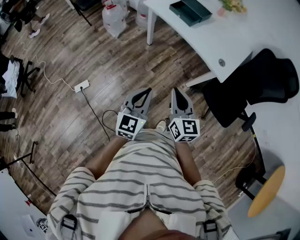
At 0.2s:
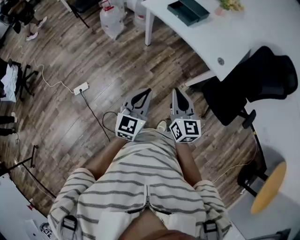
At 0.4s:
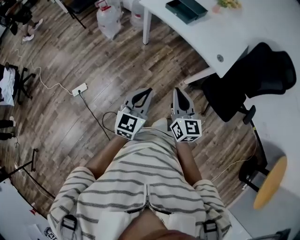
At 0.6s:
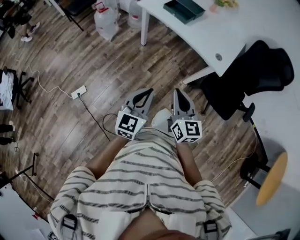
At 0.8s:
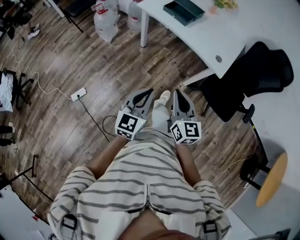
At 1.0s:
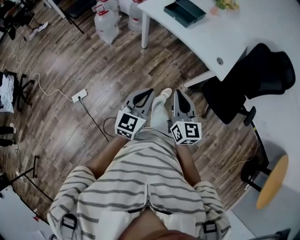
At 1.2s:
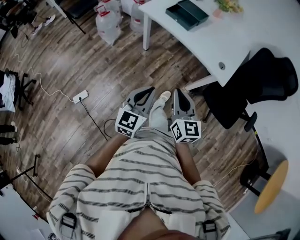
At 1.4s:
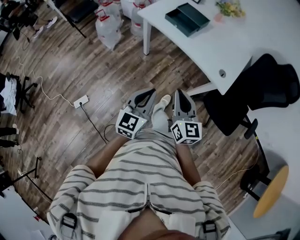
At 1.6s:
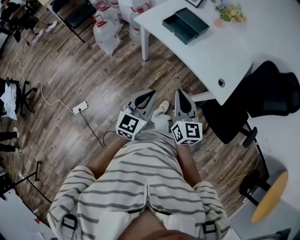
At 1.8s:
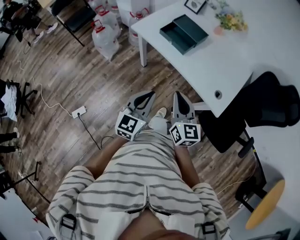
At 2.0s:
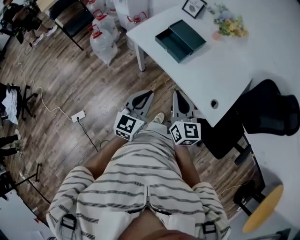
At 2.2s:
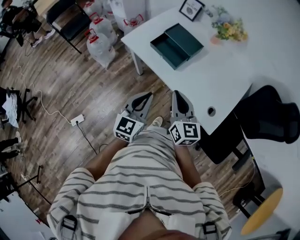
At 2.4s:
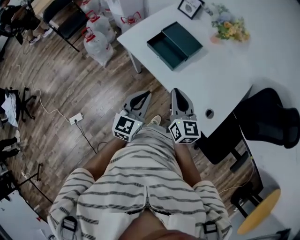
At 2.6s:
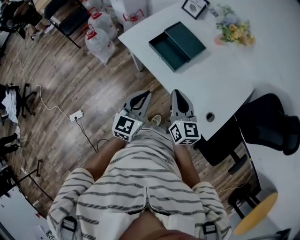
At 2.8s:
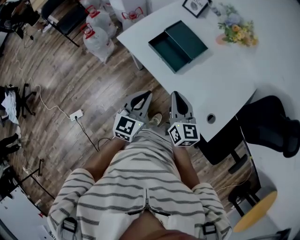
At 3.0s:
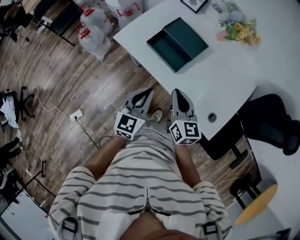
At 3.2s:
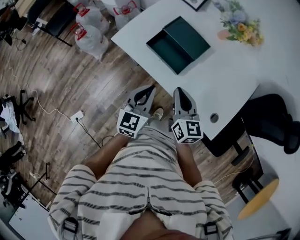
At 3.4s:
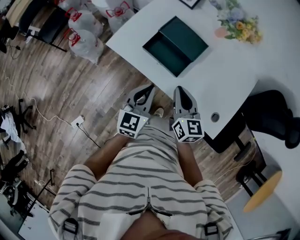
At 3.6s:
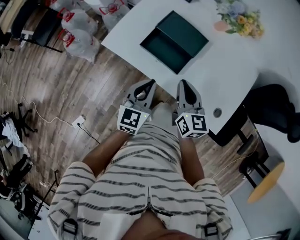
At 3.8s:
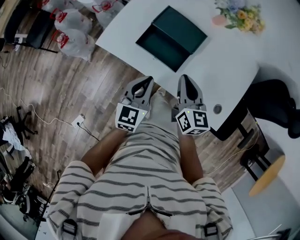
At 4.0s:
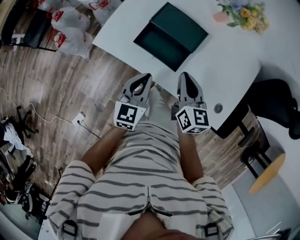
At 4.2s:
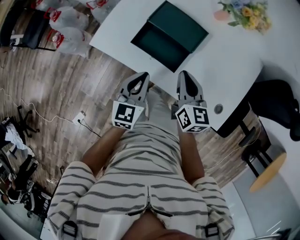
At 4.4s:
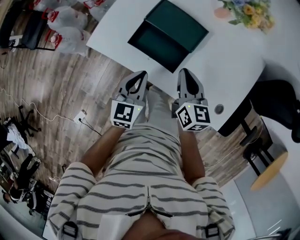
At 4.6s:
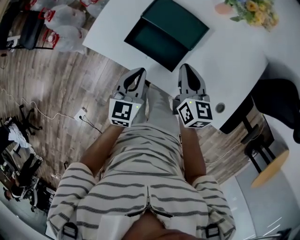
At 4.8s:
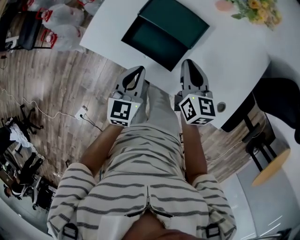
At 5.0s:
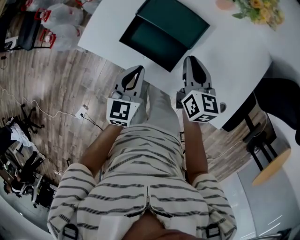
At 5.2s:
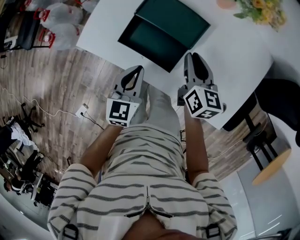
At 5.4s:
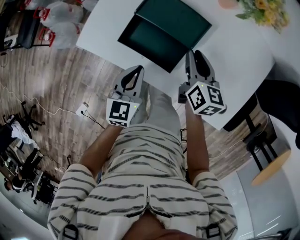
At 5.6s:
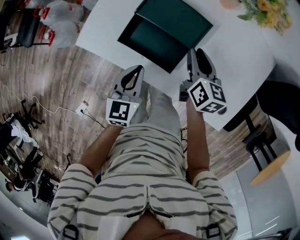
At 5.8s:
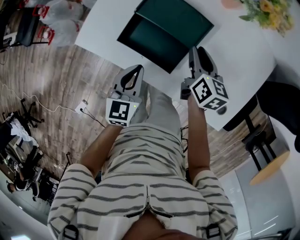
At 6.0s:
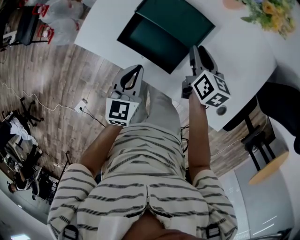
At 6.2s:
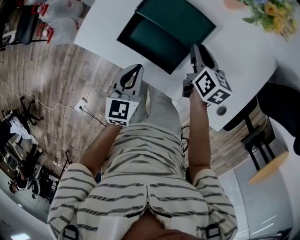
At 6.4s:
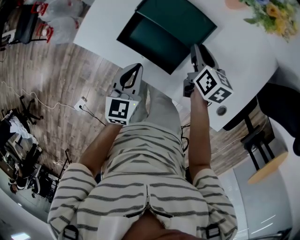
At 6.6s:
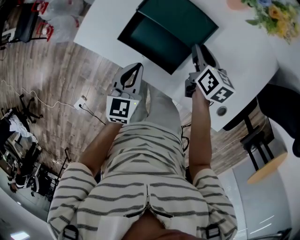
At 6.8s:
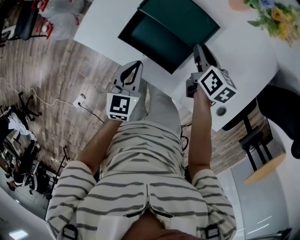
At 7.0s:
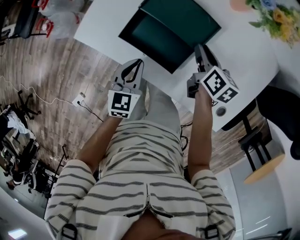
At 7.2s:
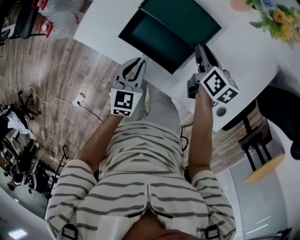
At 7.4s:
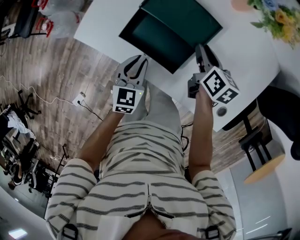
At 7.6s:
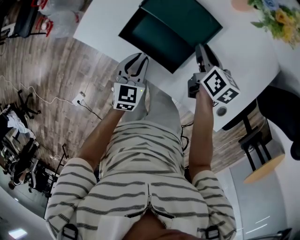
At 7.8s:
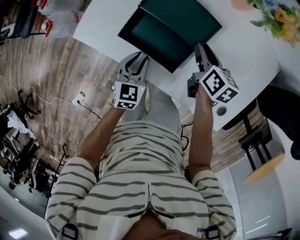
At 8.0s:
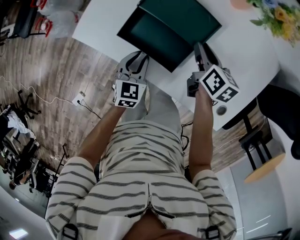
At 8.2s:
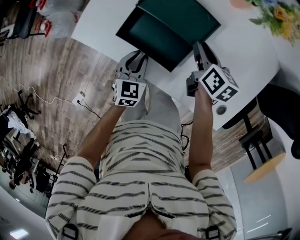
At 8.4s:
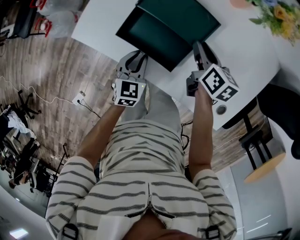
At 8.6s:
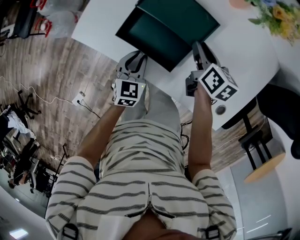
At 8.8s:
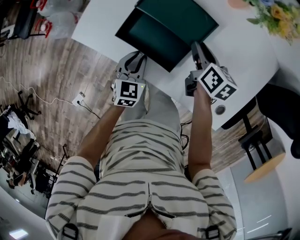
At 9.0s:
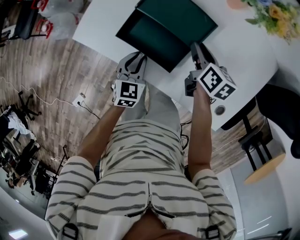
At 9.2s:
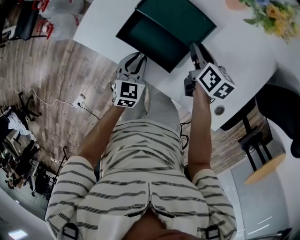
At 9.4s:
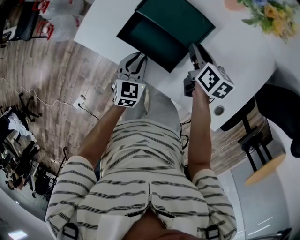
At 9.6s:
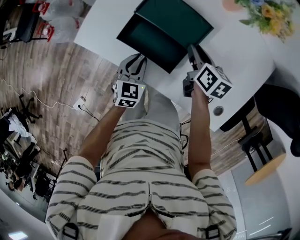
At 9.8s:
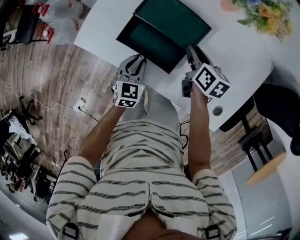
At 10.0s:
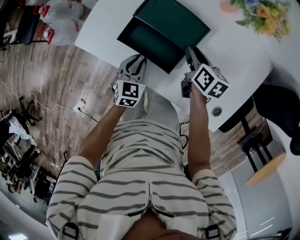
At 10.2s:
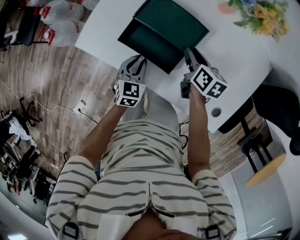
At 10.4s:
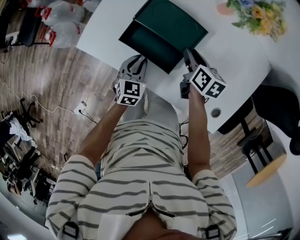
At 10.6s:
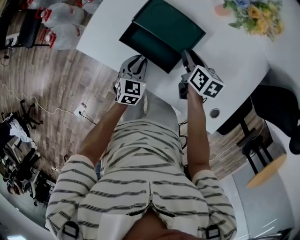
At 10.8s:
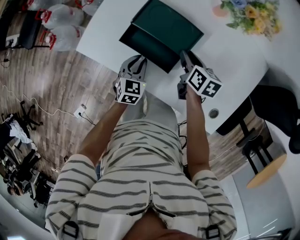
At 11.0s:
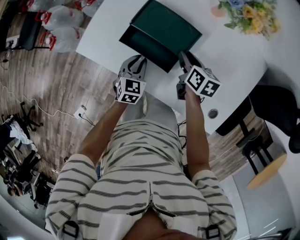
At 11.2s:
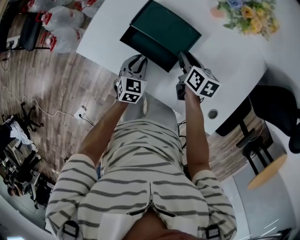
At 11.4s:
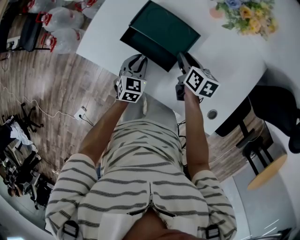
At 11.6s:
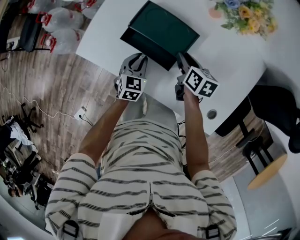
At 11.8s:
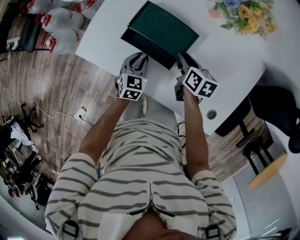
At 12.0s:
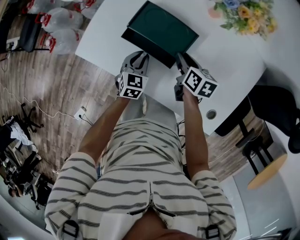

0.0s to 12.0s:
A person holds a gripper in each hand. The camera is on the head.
0.0s to 1.6s: The grippers both shift forward by approximately 20 cm.
1.6s to 3.0s: Both grippers travel together forward, approximately 30 cm.
3.0s to 4.4s: Both grippers travel together forward and downward, about 15 cm.
4.4s to 6.0s: The right gripper shifts roughly 15 cm forward, downward and to the right, and opens up. The left gripper ends up approximately 5 cm from where it was.
6.0s to 7.6s: The left gripper heads downward, covering some 5 cm.
7.6s to 10.4s: There are only small adjustments of the grippers.
10.4s to 12.0s: The left gripper moves about 5 cm.

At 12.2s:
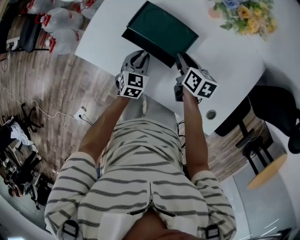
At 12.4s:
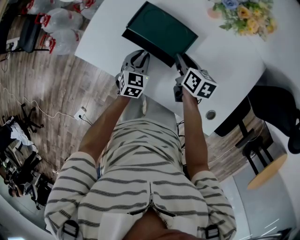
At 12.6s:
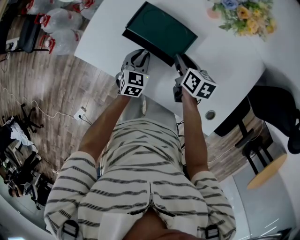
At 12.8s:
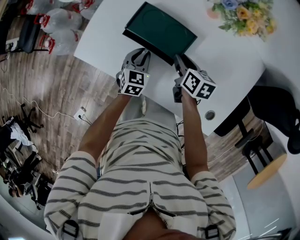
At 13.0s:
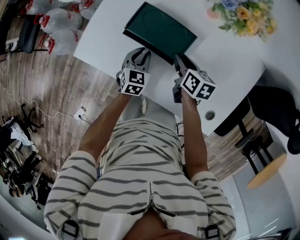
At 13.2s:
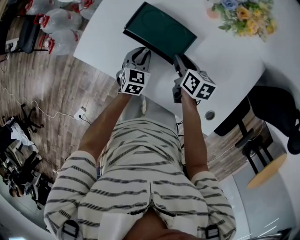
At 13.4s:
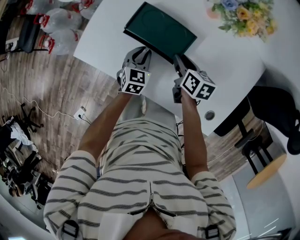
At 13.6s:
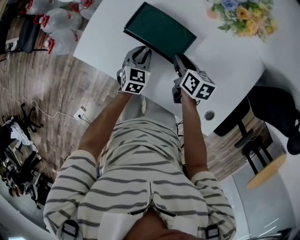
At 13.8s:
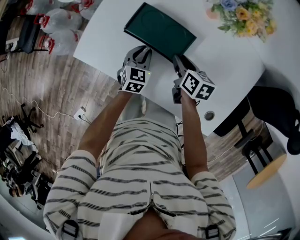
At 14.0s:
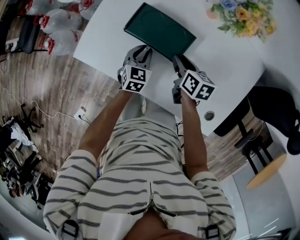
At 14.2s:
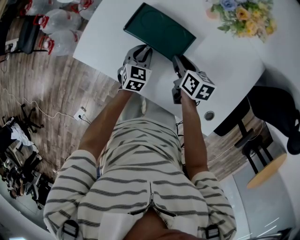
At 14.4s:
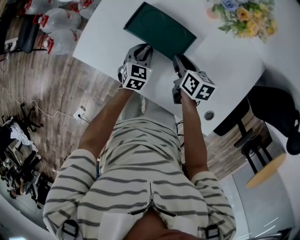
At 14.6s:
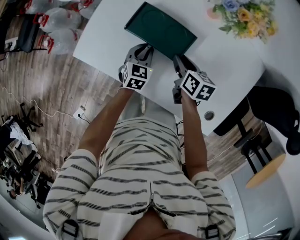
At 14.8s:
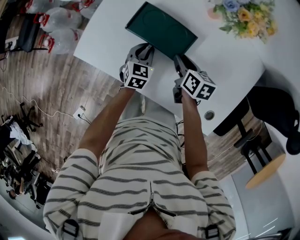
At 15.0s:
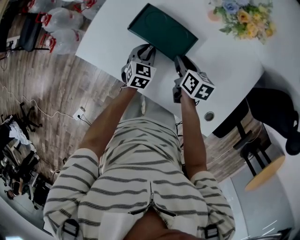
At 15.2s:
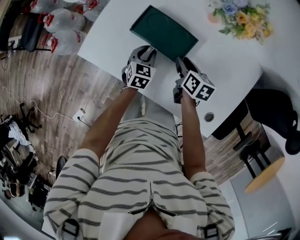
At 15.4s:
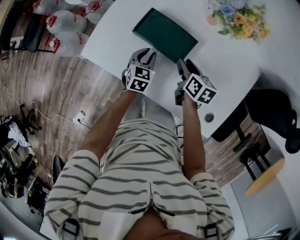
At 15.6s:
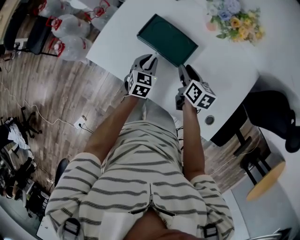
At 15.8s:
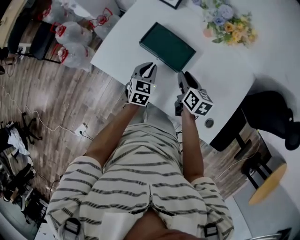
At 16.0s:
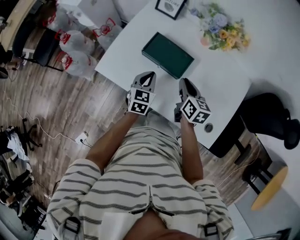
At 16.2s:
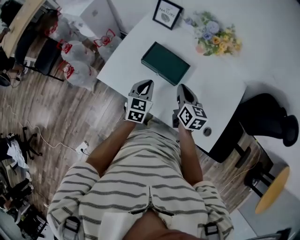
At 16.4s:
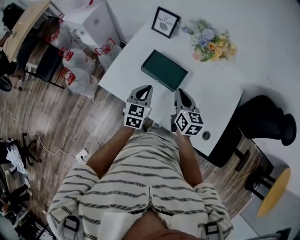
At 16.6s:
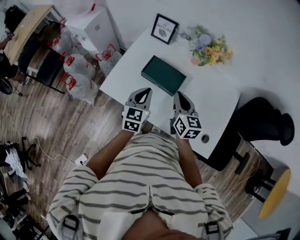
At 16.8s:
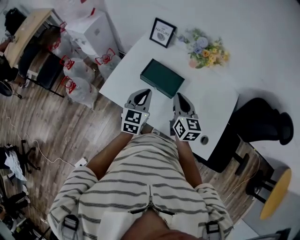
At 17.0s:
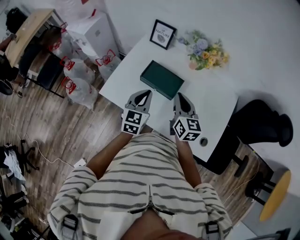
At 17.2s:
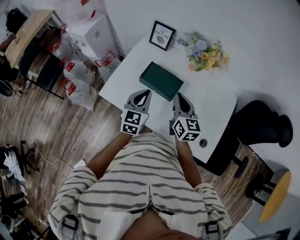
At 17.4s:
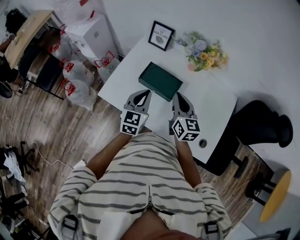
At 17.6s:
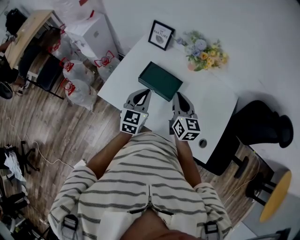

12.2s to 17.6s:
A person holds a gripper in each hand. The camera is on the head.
12.2s to 15.0s: The grippers move only a little.
15.0s to 16.2s: The right gripper shifts some 15 cm upward, changes its angle by some 20 degrees, and closes up. Meanwhile the left gripper heads upward and backward, covering approximately 20 cm.
16.2s to 17.6s: The two grippers go about 10 cm upward.

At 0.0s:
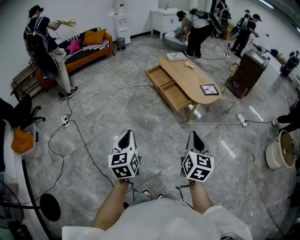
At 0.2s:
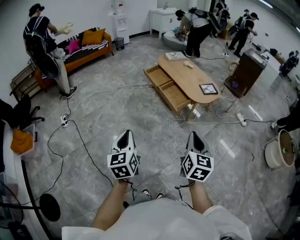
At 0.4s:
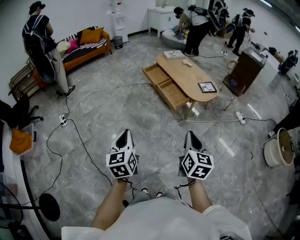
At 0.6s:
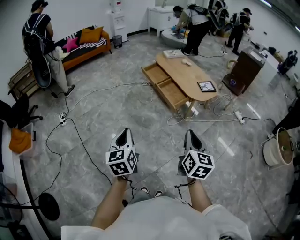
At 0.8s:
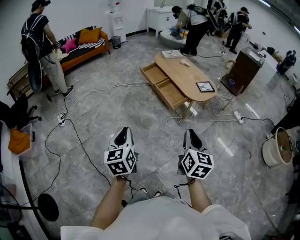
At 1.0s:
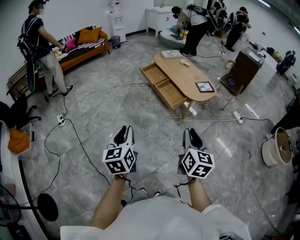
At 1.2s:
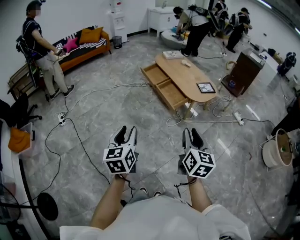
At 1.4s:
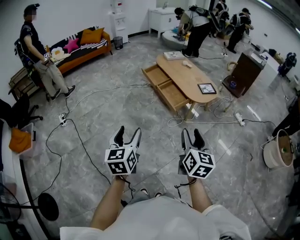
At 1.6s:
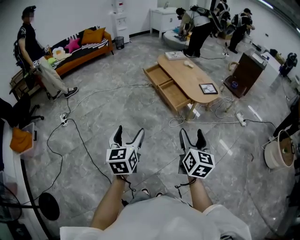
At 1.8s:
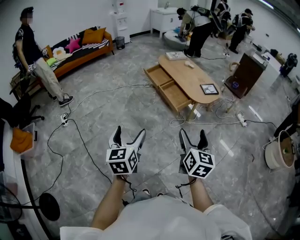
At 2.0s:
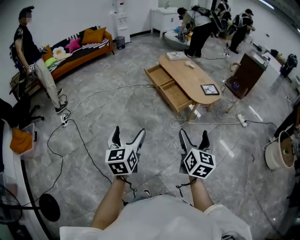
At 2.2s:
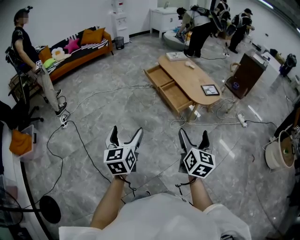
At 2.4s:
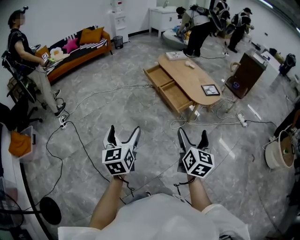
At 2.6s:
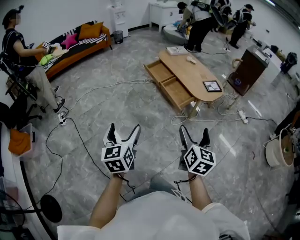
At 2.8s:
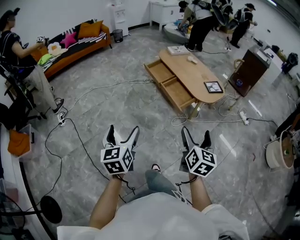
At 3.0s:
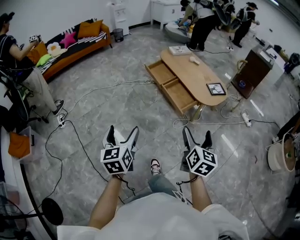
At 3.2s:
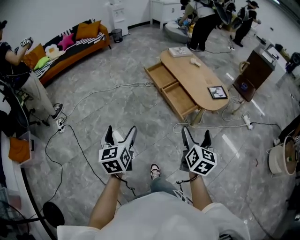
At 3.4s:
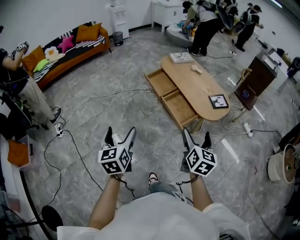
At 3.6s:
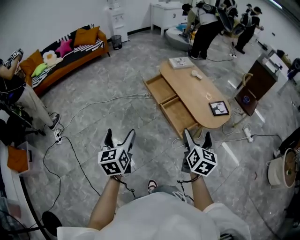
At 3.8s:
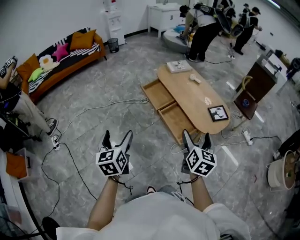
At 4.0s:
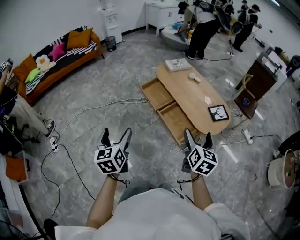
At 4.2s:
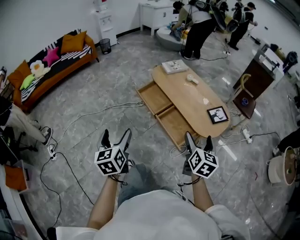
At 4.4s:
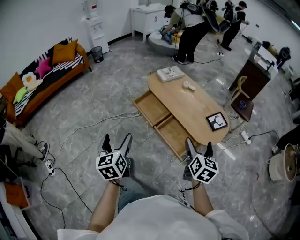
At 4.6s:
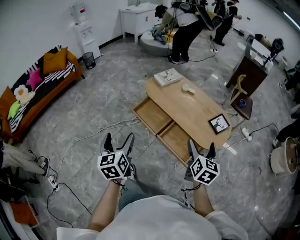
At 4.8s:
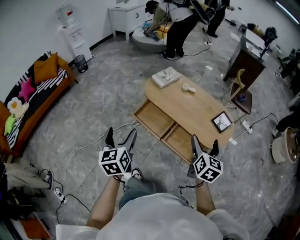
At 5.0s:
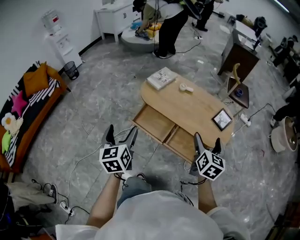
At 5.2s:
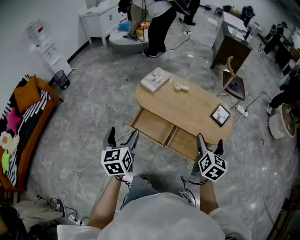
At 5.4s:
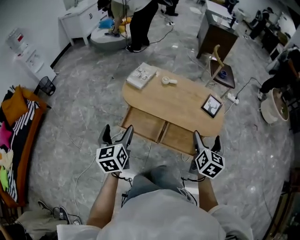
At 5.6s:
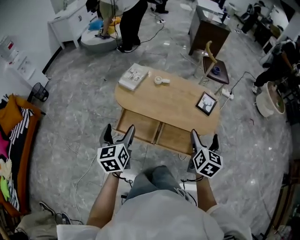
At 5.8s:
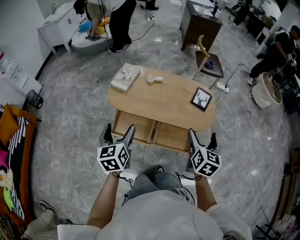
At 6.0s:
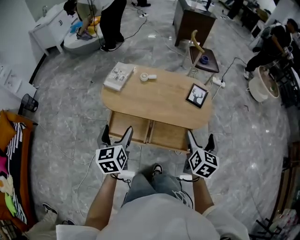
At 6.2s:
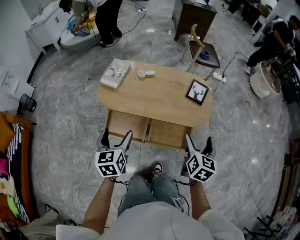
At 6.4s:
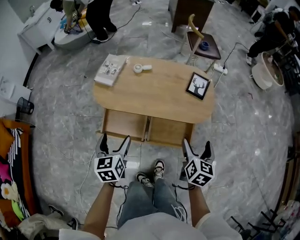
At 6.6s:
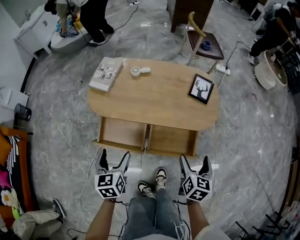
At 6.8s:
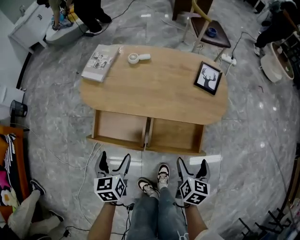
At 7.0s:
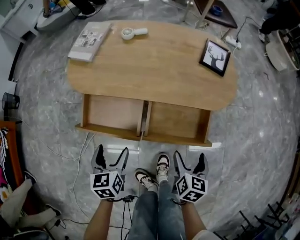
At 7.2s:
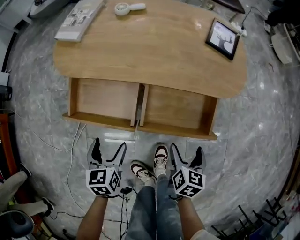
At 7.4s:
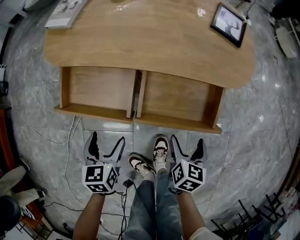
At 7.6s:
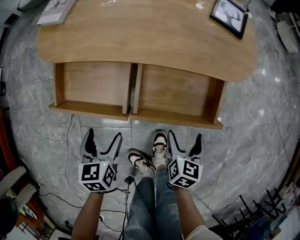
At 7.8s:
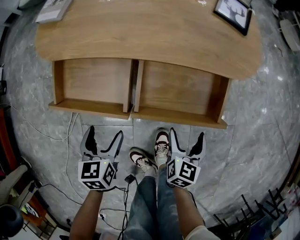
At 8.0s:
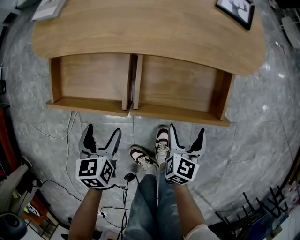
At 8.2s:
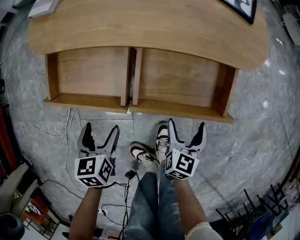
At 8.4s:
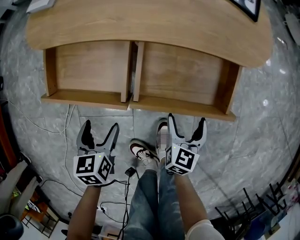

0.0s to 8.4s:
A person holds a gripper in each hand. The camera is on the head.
0.0s to 1.4s: The right gripper opens up, while the left gripper opens up.
1.4s to 2.8s: The right gripper heads forward, covering approximately 10 cm, and opens its fingers, while the left gripper goes some 10 cm forward and to the left, and opens up.
2.8s to 4.2s: The grippers both shift forward by some 40 cm.
4.2s to 5.6s: The right gripper shifts by approximately 25 cm, and turns by approximately 40 degrees. The left gripper changes place by some 50 cm, and swivels about 40 degrees.
5.6s to 7.0s: The grippers both shift downward by some 35 cm. The right gripper swivels some 20 degrees. The left gripper rotates some 20 degrees.
7.0s to 8.4s: The two grippers go about 20 cm downward.
